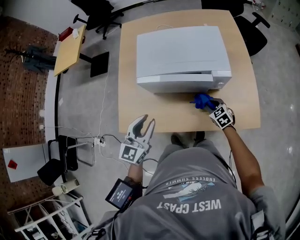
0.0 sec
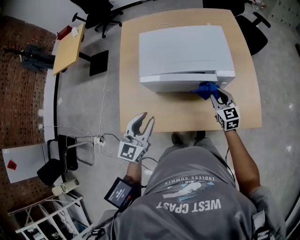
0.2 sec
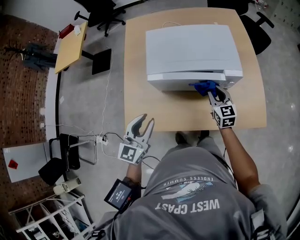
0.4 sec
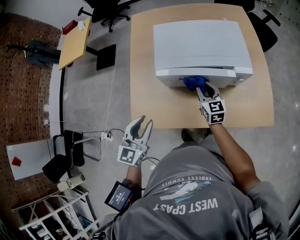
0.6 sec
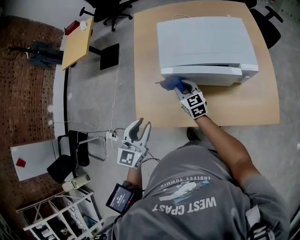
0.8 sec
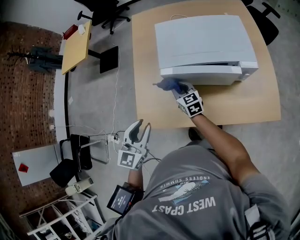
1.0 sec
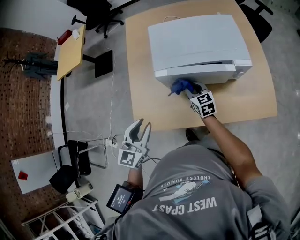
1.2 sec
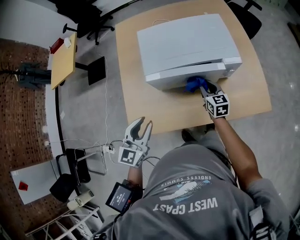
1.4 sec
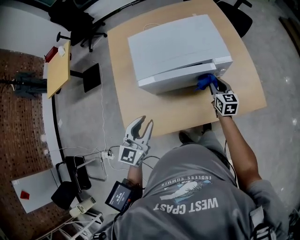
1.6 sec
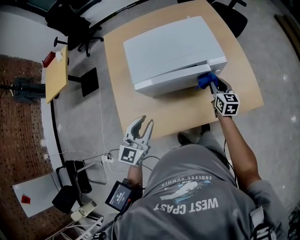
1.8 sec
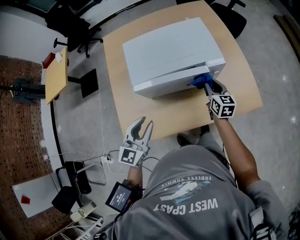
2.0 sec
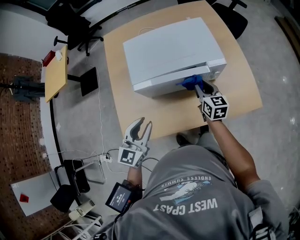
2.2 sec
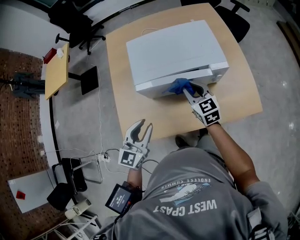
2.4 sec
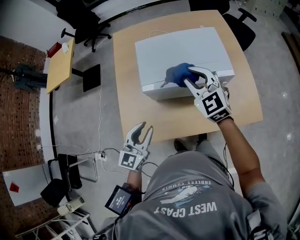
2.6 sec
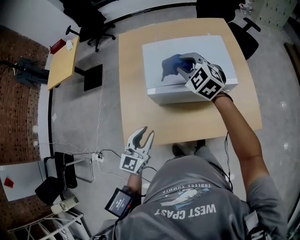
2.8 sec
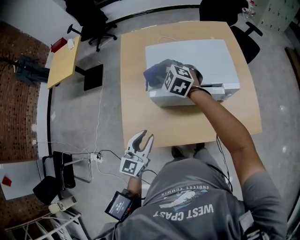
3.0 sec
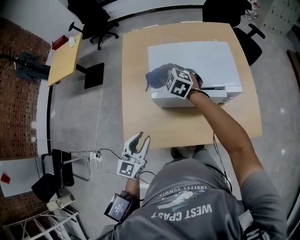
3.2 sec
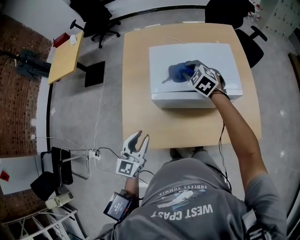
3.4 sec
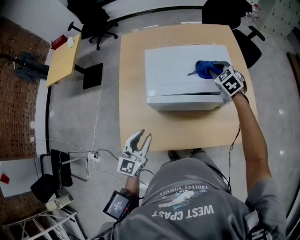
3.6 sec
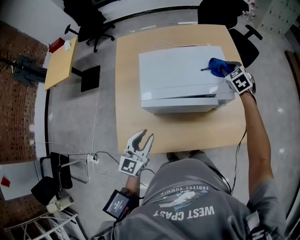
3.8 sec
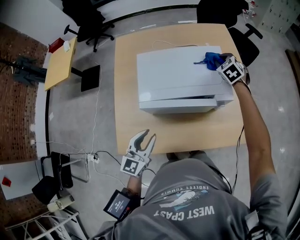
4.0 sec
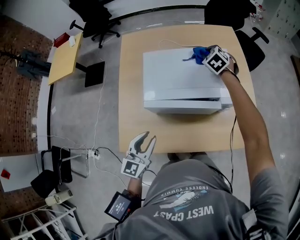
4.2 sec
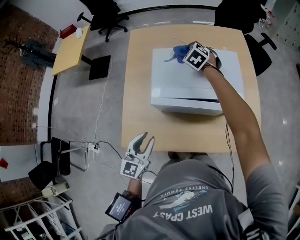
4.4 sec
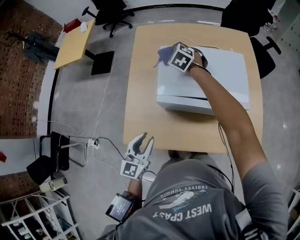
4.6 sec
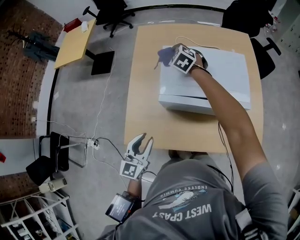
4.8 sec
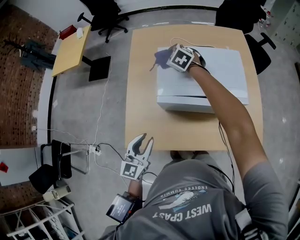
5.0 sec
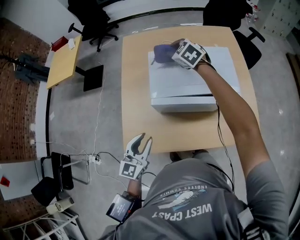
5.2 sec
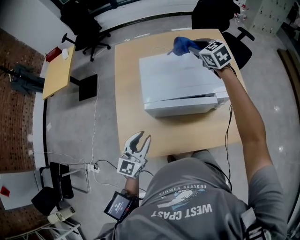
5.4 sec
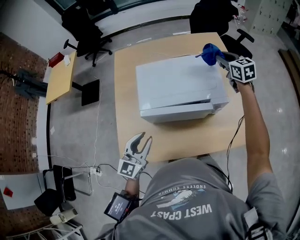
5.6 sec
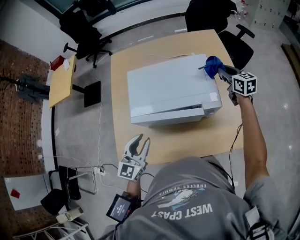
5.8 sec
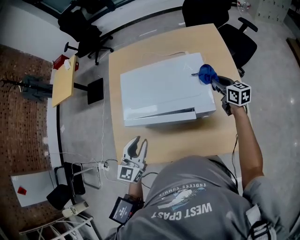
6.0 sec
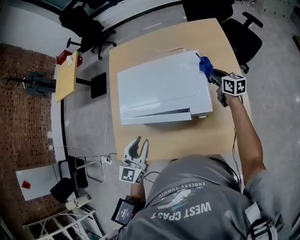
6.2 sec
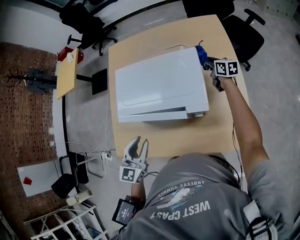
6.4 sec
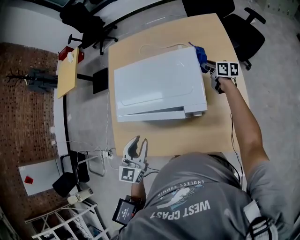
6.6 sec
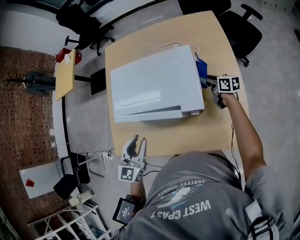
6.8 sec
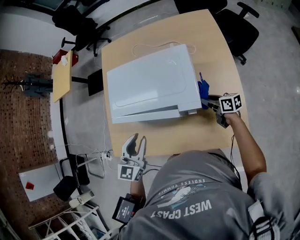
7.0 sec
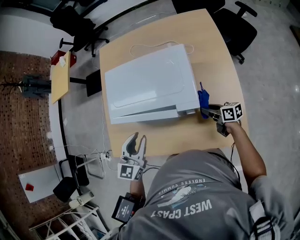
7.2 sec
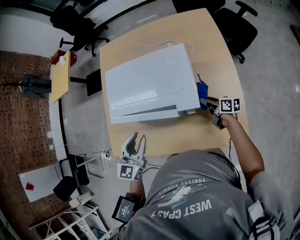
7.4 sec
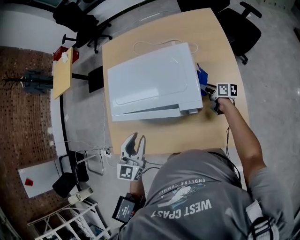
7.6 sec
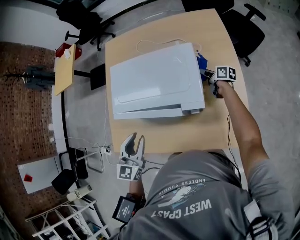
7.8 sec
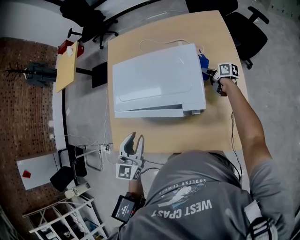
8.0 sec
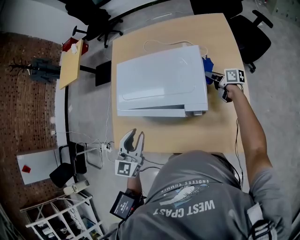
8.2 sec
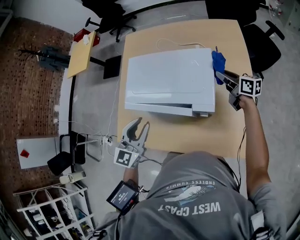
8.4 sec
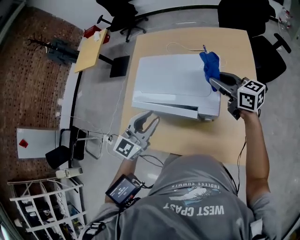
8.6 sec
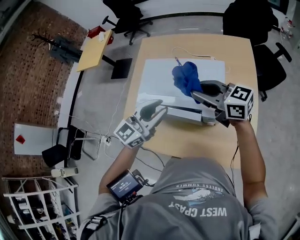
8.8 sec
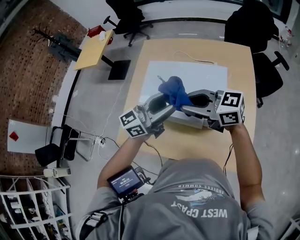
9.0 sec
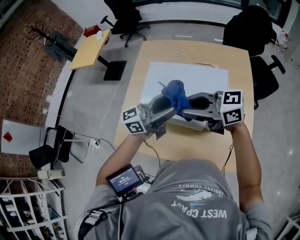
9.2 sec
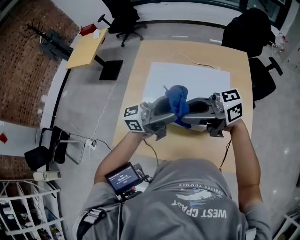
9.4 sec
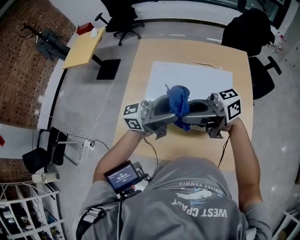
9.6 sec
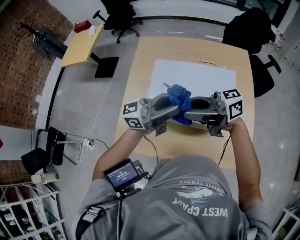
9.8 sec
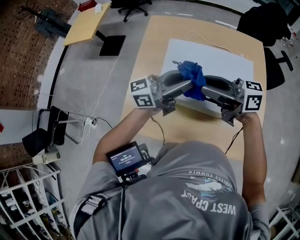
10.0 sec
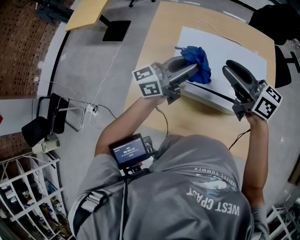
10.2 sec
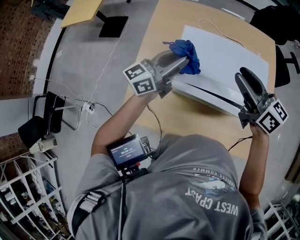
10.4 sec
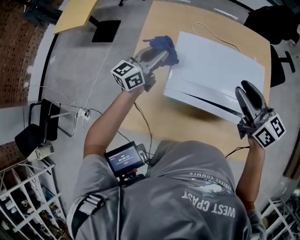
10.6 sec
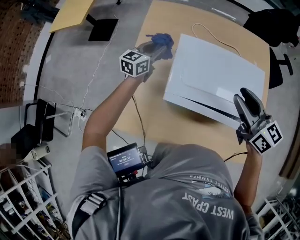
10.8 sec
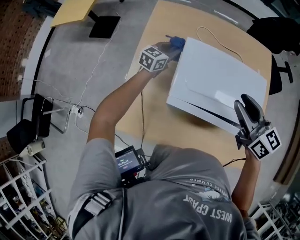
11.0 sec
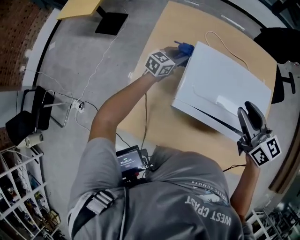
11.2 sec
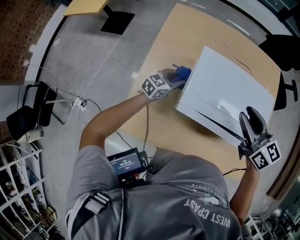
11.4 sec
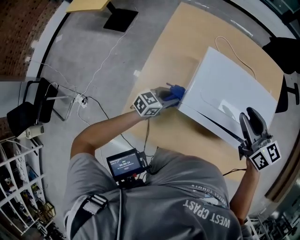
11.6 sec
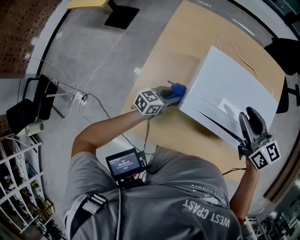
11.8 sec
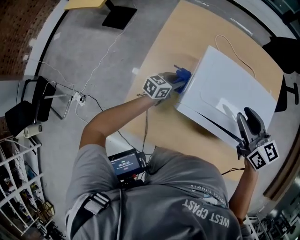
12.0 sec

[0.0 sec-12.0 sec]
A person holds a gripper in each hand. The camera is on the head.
0.0 sec to 1.6 sec: The left gripper is displaced to the left by some 5 cm; the right gripper moves upward and forward, about 10 cm, reaches approximately 30 cm to the left, then returns, and rotates some 50 degrees.
1.6 sec to 3.0 sec: The right gripper changes place by about 35 cm, and rolls counterclockwise, seen from behind, by about 60 degrees.
3.0 sec to 4.4 sec: The left gripper goes to the right and returns, about 5 cm each way. The right gripper is displaced forward by approximately 20 cm, and reaches roughly 35 cm to the right, then returns.
4.4 sec to 6.0 sec: The right gripper is displaced to the right by roughly 30 cm, and rotates around the line of its fingers by some 60 degrees, clockwise from behind. Meanwhile the left gripper travels to the right and forward by roughly 15 cm.
6.0 sec to 7.6 sec: The right gripper moves forward and backward over about 25 cm, changing direction 2 times, and swivels about 30 degrees; the left gripper moves to the right, roughly 5 cm.
7.6 sec to 9.0 sec: The right gripper is displaced upward by about 35 cm, and changes its angle by about 70 degrees; the left gripper is displaced upward by about 15 cm, and turns by about 40 degrees.
9.0 sec to 10.4 sec: The right gripper changes place by approximately 15 cm, and swivels some 40 degrees. Meanwhile the left gripper ends up roughly 25 cm from where it was, and closes its fingers.
10.4 sec to 12.0 sec: The left gripper shifts some 25 cm downward, and tips its fingers downward by roughly 40 degrees; the right gripper is displaced downward by approximately 5 cm.

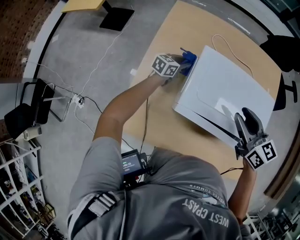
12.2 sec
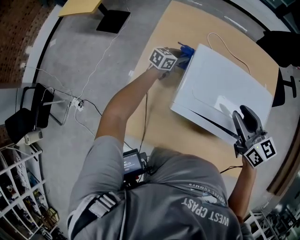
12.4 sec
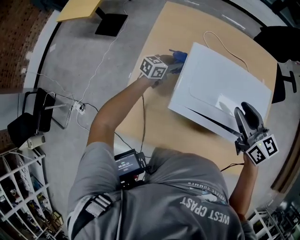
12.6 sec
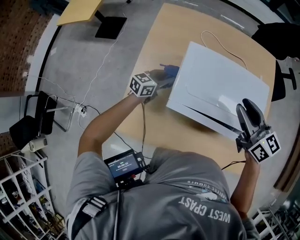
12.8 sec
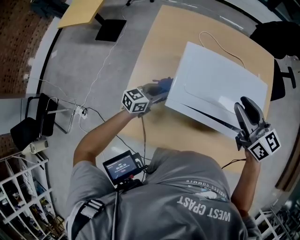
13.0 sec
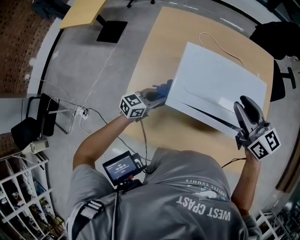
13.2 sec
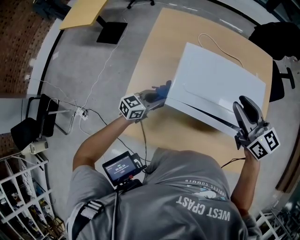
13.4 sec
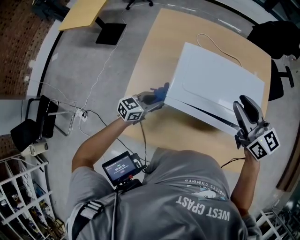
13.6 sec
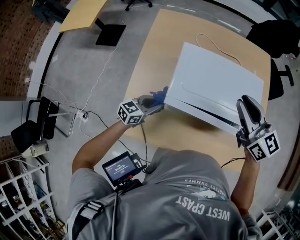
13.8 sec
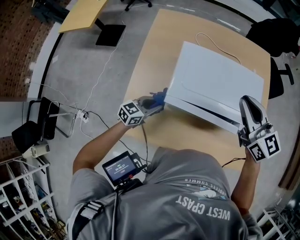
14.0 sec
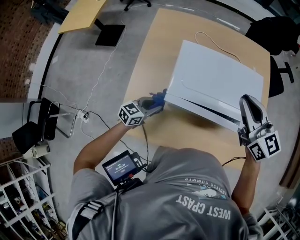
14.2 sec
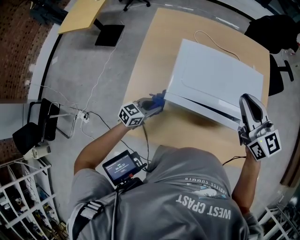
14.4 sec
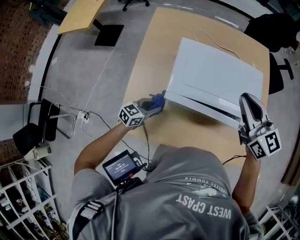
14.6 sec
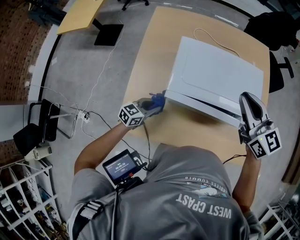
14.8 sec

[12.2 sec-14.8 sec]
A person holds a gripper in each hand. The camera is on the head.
12.2 sec to 13.4 sec: The left gripper heads backward, covering about 20 cm, while the right gripper goes some 5 cm upward.
13.4 sec to 14.8 sec: The right gripper closes up. The left gripper travels backward by roughly 5 cm.

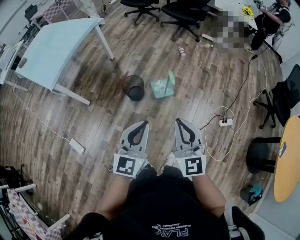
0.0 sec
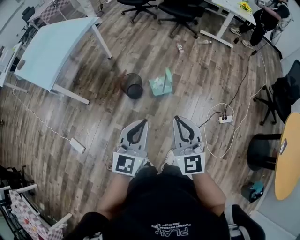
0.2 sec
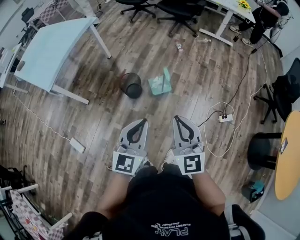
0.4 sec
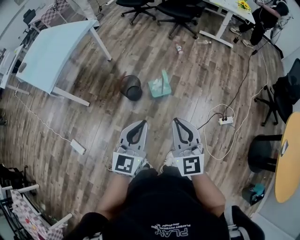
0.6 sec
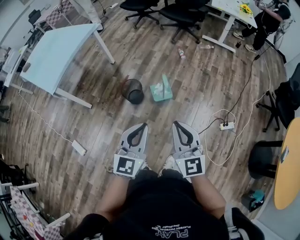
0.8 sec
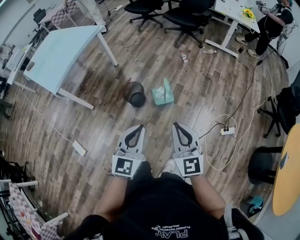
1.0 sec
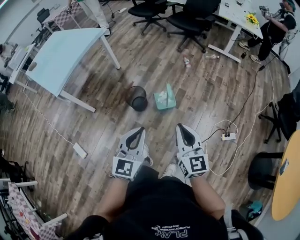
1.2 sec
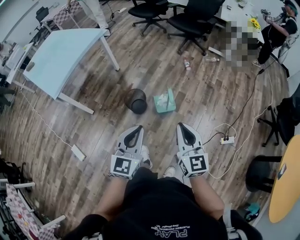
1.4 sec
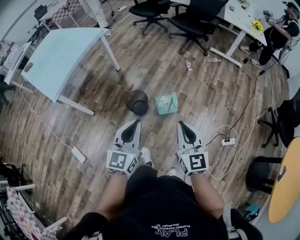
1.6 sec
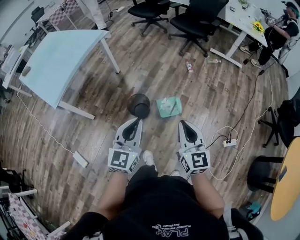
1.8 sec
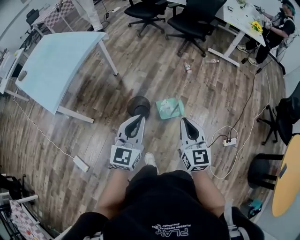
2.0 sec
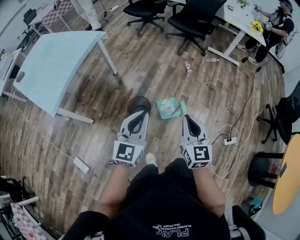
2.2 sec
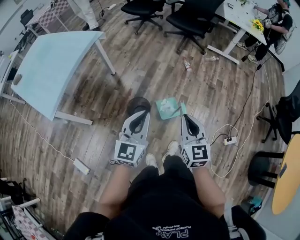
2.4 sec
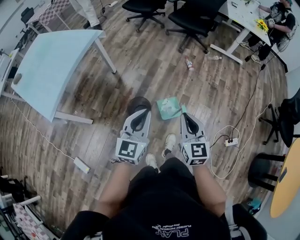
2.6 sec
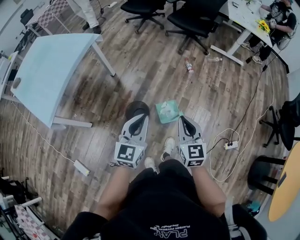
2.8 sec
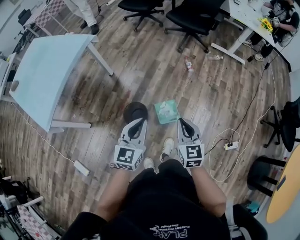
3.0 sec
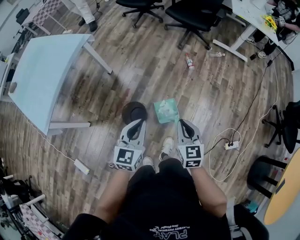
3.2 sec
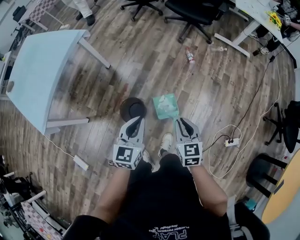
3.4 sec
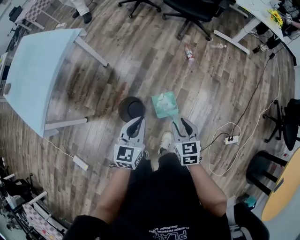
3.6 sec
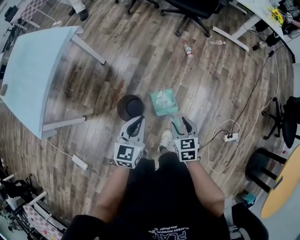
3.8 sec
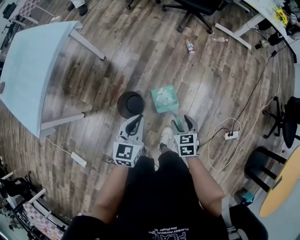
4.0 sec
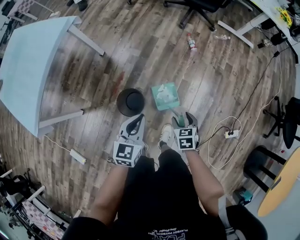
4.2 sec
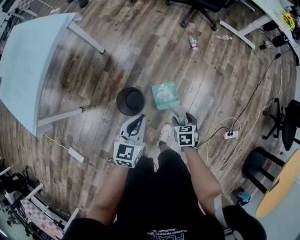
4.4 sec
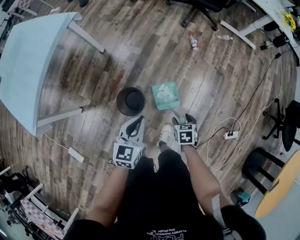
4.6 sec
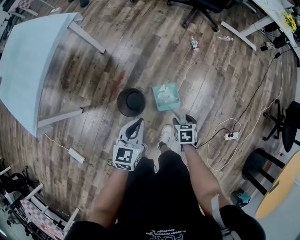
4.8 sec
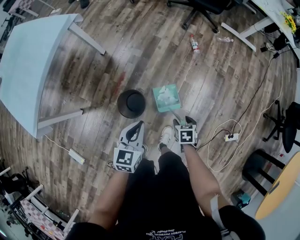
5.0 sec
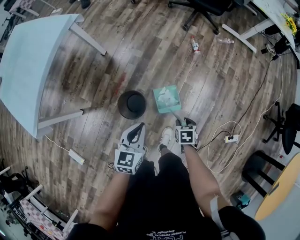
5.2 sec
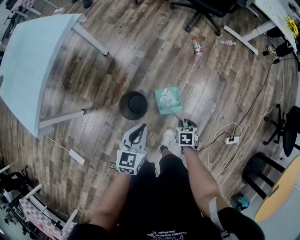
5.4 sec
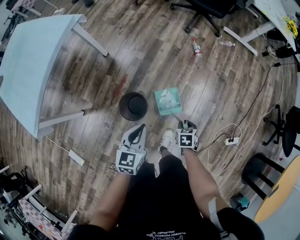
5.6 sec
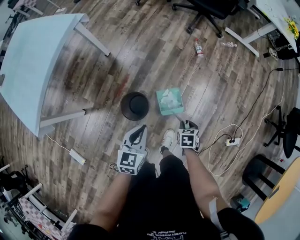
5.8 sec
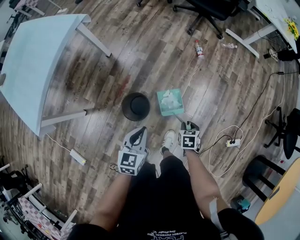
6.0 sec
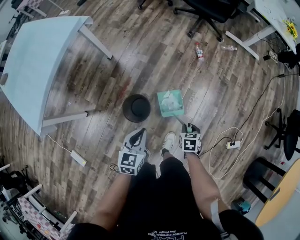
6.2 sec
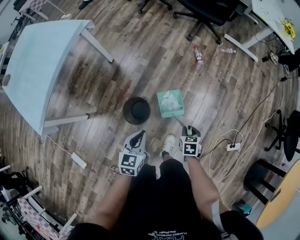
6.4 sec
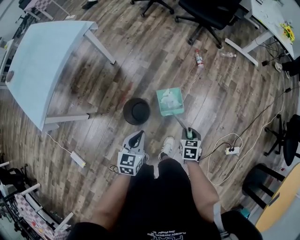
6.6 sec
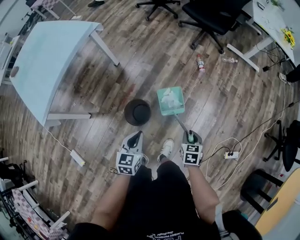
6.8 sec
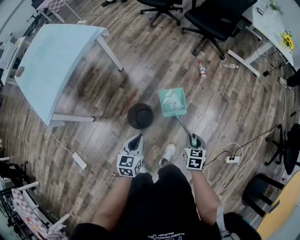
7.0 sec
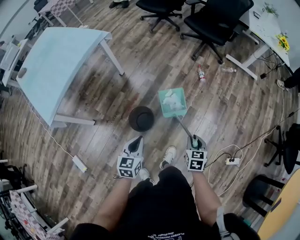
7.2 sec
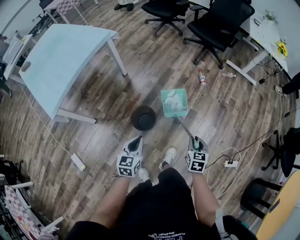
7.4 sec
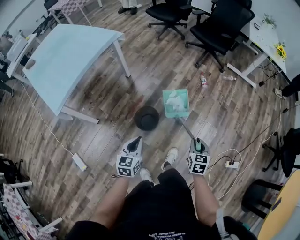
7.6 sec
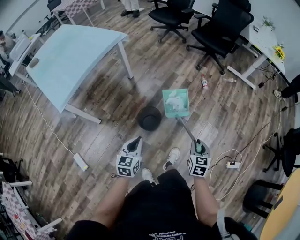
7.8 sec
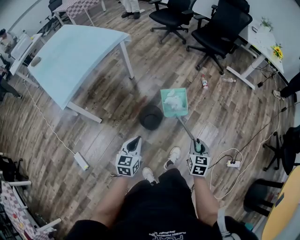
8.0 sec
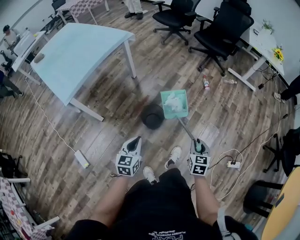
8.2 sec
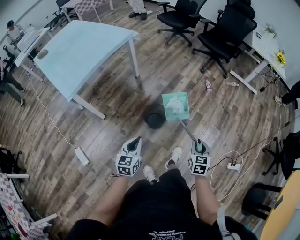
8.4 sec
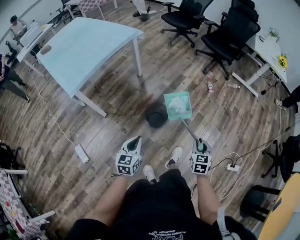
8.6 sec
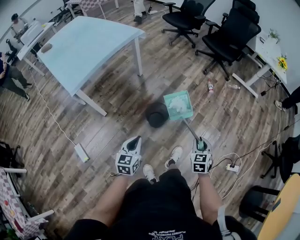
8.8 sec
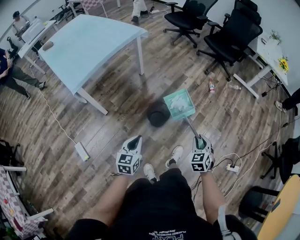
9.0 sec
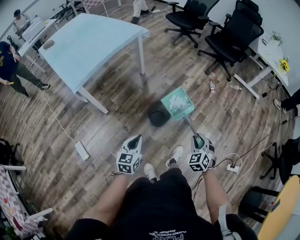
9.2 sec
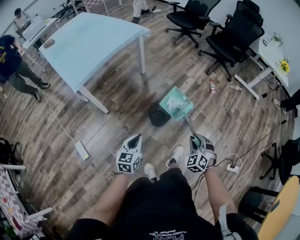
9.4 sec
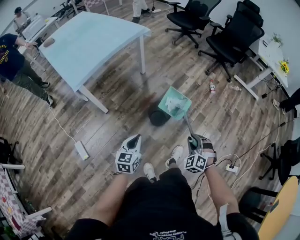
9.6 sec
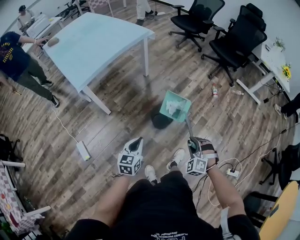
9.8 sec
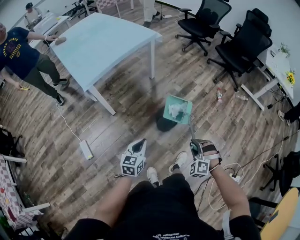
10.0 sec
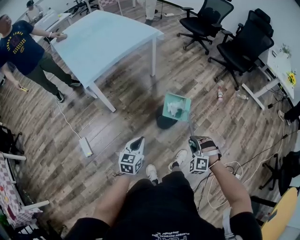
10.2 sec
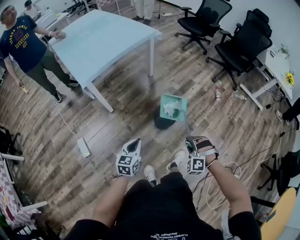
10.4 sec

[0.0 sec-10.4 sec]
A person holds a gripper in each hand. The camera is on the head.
0.0 sec to 1.4 sec: The left gripper moves forward, roughly 10 cm. The right gripper heads forward and to the right, covering approximately 10 cm.
1.4 sec to 3.0 sec: Both grippers move forward, about 25 cm.
3.0 sec to 4.4 sec: The left gripper travels downward and forward by roughly 15 cm. Meanwhile the right gripper travels downward by about 25 cm, tilts its fingers about 40 degrees downward, and opens up.
4.4 sec to 6.0 sec: The left gripper moves approximately 5 cm. Meanwhile the right gripper closes up.
6.0 sec to 7.4 sec: The left gripper is displaced backward by about 10 cm, while the right gripper heads upward and backward, covering some 20 cm, and changes its angle by some 20 degrees.
7.4 sec to 9.0 sec: The left gripper heads backward and to the left, covering about 20 cm. Meanwhile the right gripper heads backward, to the left and upward, covering about 15 cm, and rotates roughly 30 degrees.
9.0 sec to 10.4 sec: The left gripper shifts by approximately 5 cm; the right gripper moves to the left, some 10 cm, and rotates around the line of its fingers by about 60 degrees, counterclockwise from behind.
